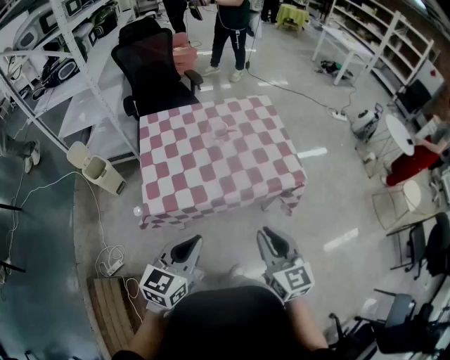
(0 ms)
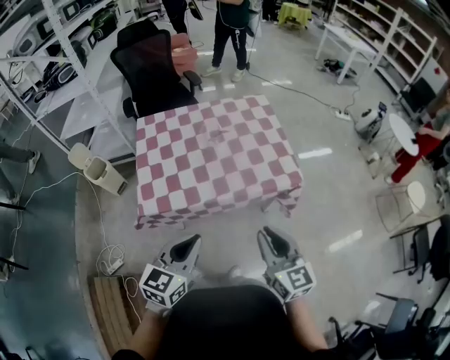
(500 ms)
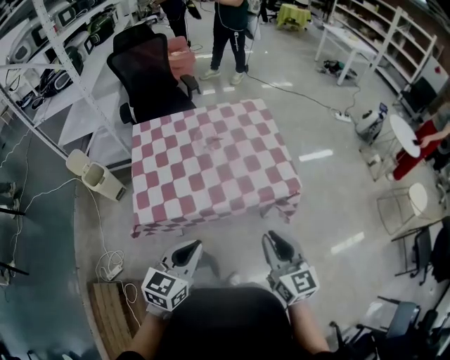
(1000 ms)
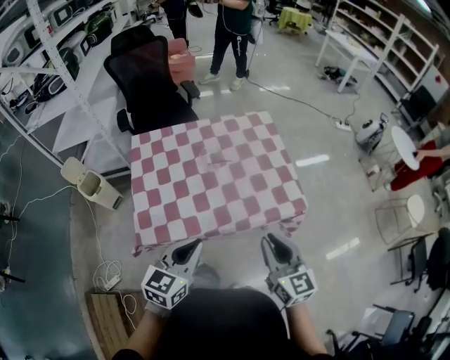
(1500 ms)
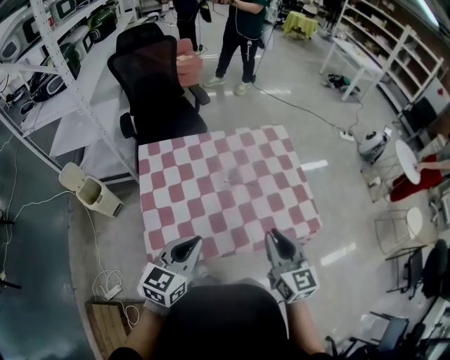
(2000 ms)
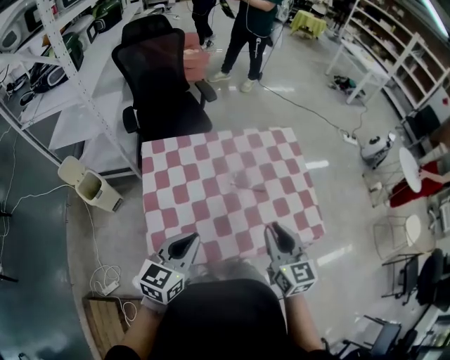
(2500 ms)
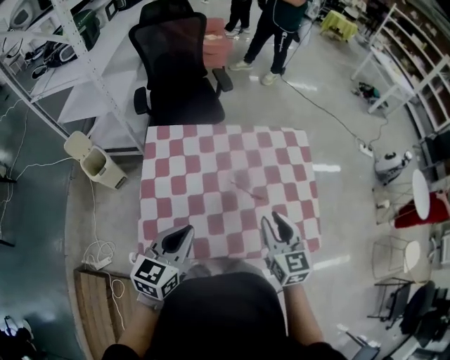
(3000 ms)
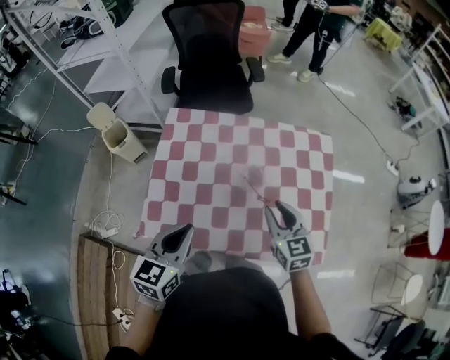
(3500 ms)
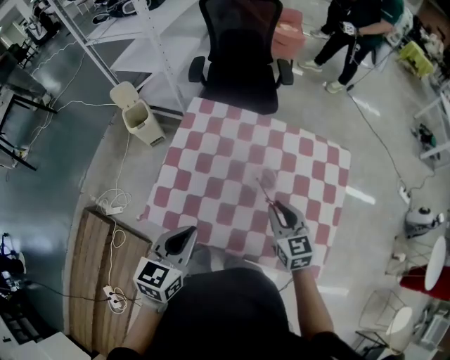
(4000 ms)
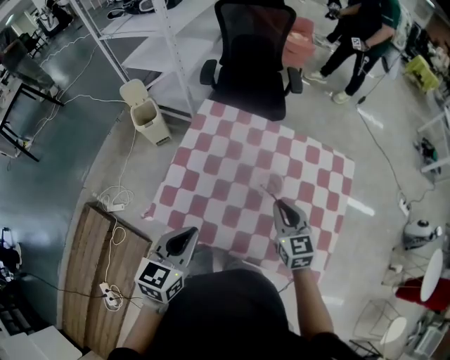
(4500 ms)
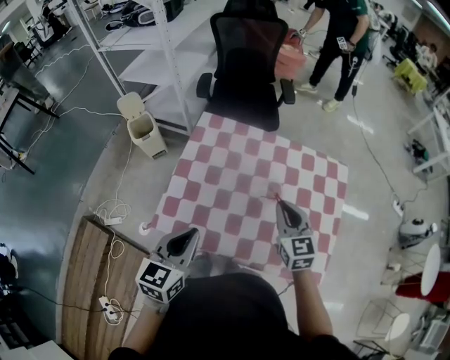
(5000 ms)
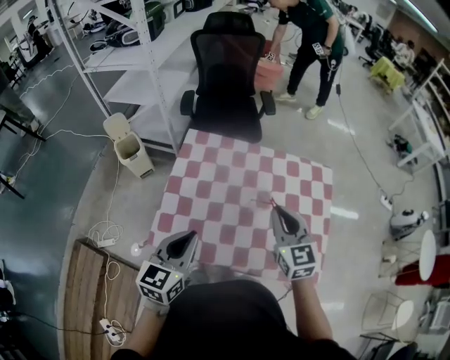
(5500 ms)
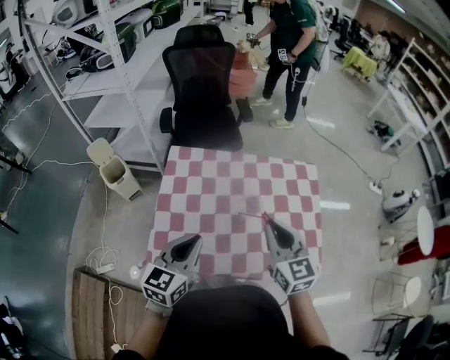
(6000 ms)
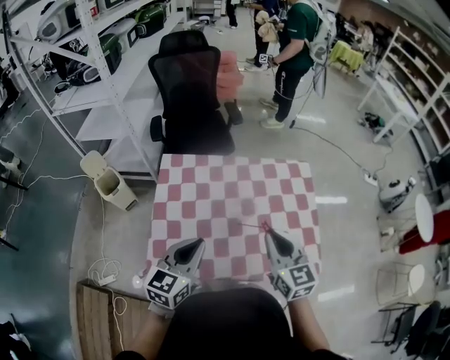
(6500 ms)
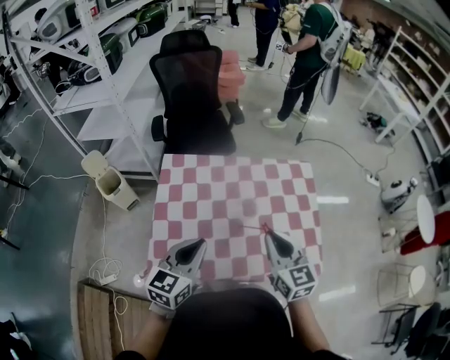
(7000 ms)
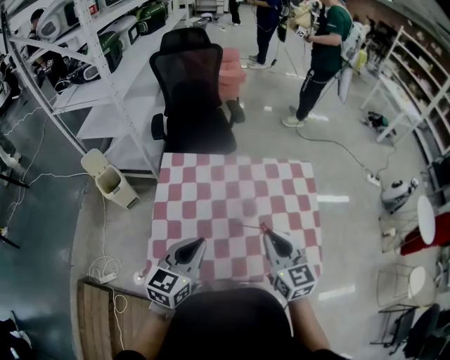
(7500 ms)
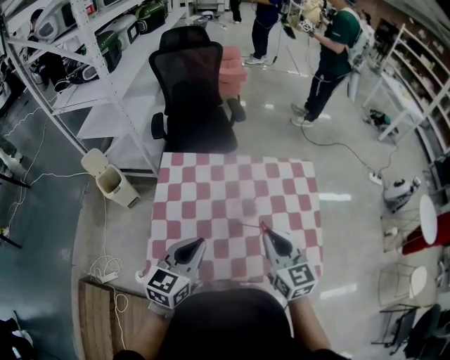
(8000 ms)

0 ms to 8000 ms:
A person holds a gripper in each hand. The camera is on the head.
0 ms to 2000 ms: The grippers both shift forward by approximately 25 cm.
2000 ms to 4000 ms: The right gripper changes place by about 20 cm, and swivels about 40 degrees; the left gripper turns by some 40 degrees.
4000 ms to 6000 ms: The left gripper travels upward by some 5 cm; the right gripper travels upward by about 15 cm.
6000 ms to 8000 ms: The grippers move only a little.

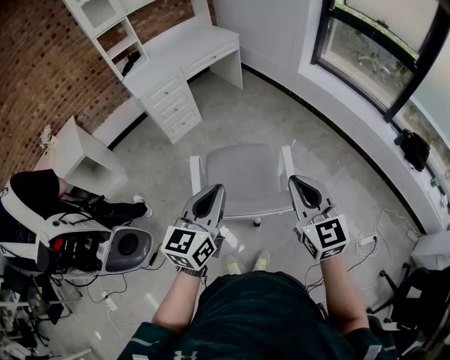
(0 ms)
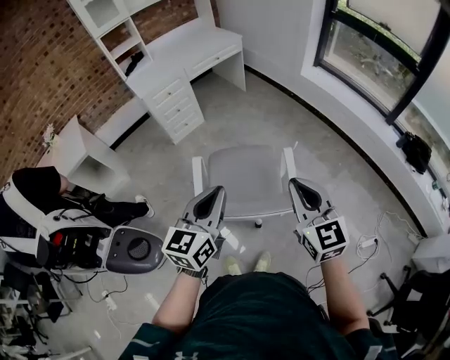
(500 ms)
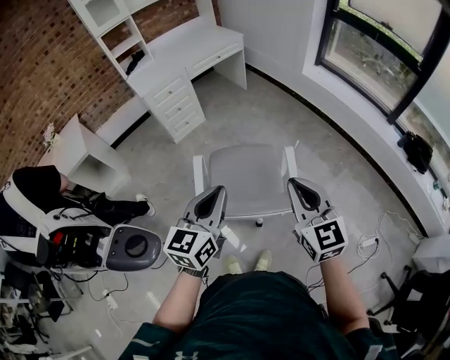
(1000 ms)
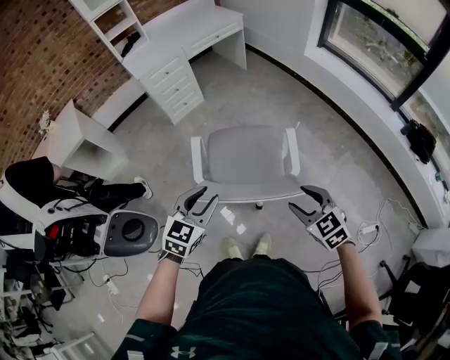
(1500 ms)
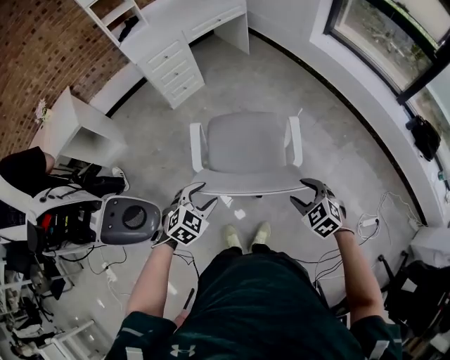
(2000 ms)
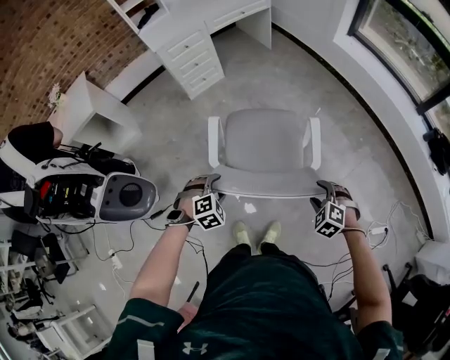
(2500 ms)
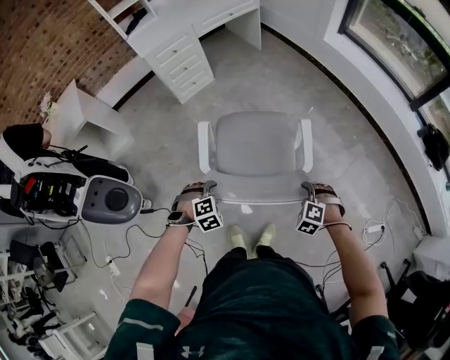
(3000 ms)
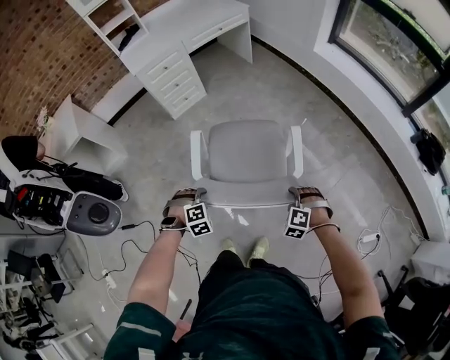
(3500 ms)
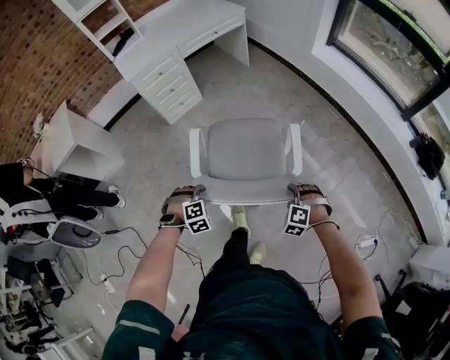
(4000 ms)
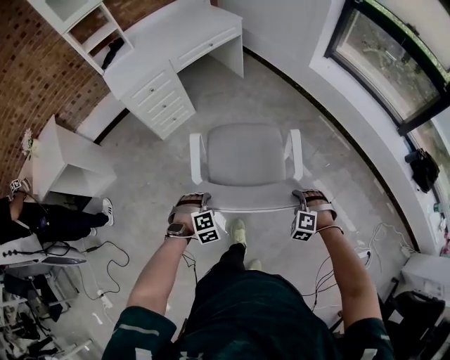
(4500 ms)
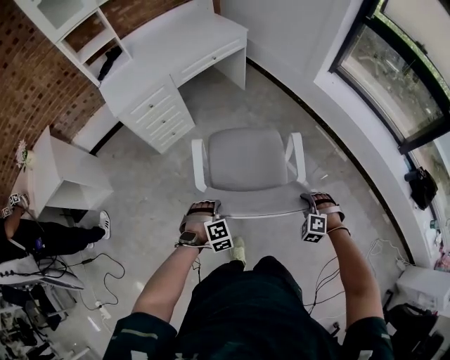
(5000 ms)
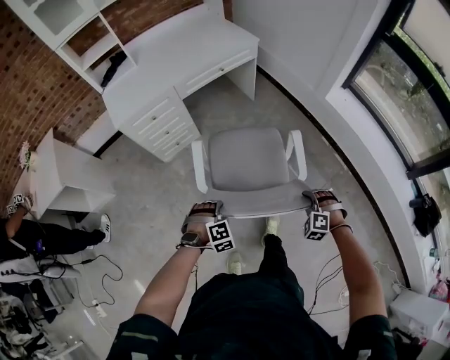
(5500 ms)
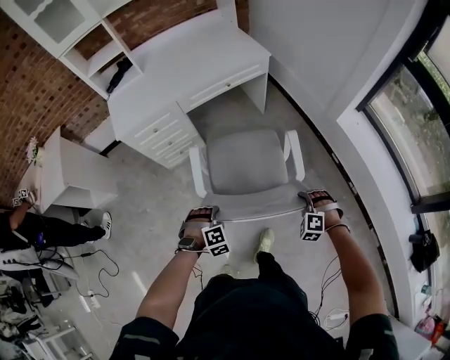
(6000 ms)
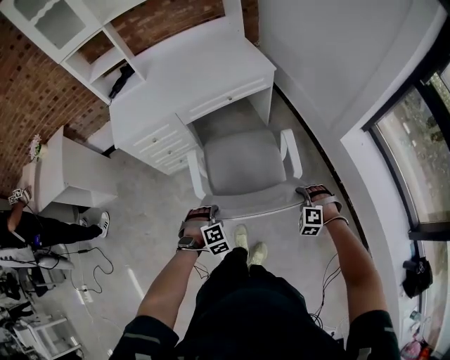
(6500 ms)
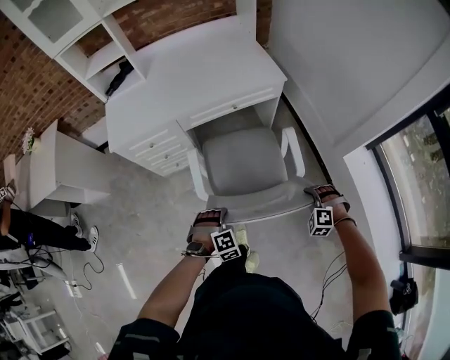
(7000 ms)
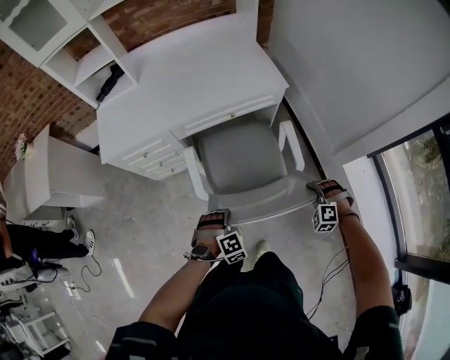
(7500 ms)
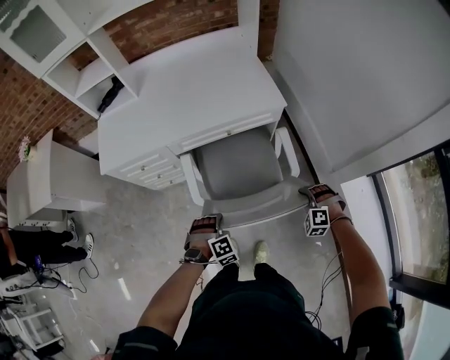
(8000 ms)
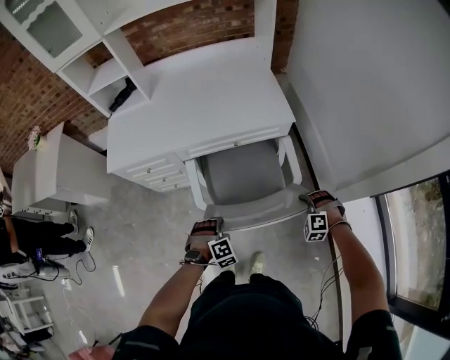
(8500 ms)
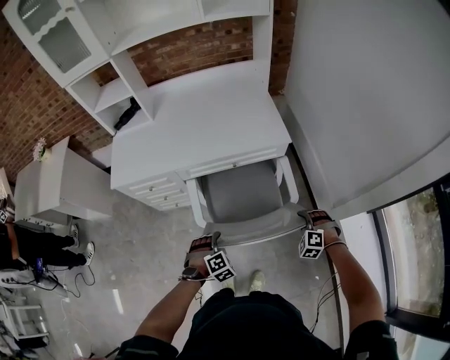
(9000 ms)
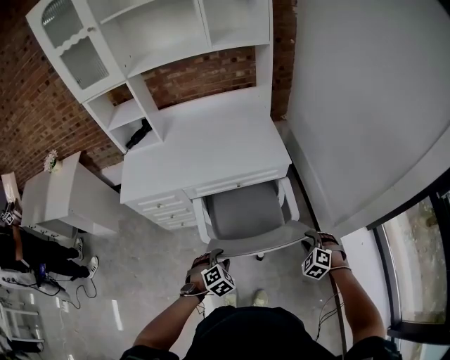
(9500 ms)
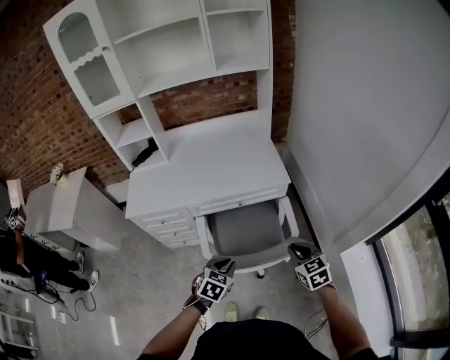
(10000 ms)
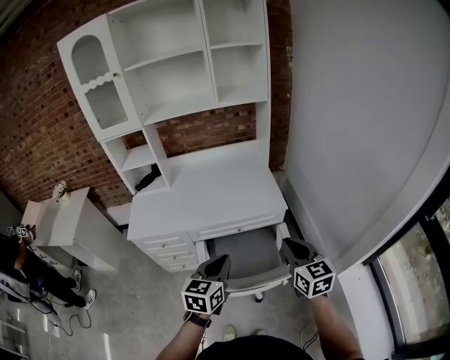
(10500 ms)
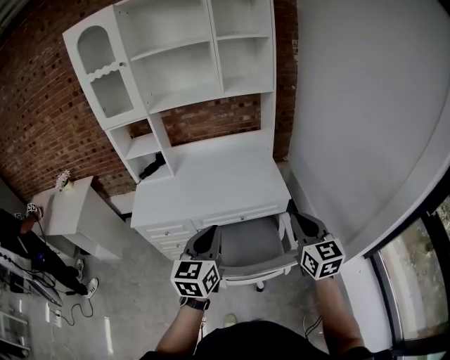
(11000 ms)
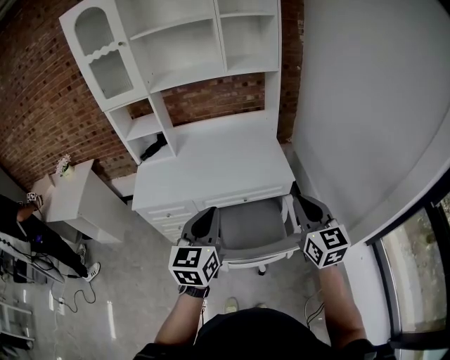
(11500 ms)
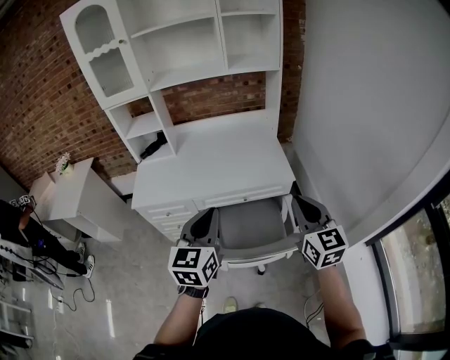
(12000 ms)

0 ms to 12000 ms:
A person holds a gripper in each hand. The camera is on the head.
0 ms to 2000 ms: The two grippers go some 25 cm downward. The right gripper points its fingers some 40 degrees further downward, and opens its fingers, while the left gripper angles its fingers downward, by approximately 40 degrees, and opens.
2000 ms to 4000 ms: Both grippers travel together forward and downward, some 20 cm. The left gripper changes its angle by approximately 40 degrees, and closes. Meanwhile the right gripper changes its angle by approximately 40 degrees, and closes its fingers.
4000 ms to 6000 ms: Both grippers are carried forward, approximately 50 cm.
6000 ms to 8000 ms: Both grippers move forward and to the right, approximately 35 cm.
8000 ms to 10000 ms: Both grippers travel together upward, about 20 cm. The left gripper rotates around the line of its fingers by roughly 50 degrees, counterclockwise from behind, and opens and closes again, while the right gripper rotates around the line of its fingers by roughly 60 degrees, clockwise from behind.
10000 ms to 12000 ms: Both grippers travel together upward, approximately 25 cm. The right gripper turns by roughly 30 degrees; the left gripper points its fingers some 40 degrees further upward.

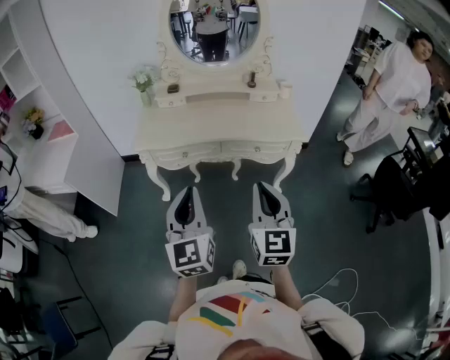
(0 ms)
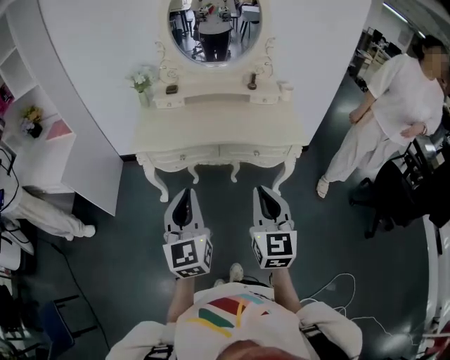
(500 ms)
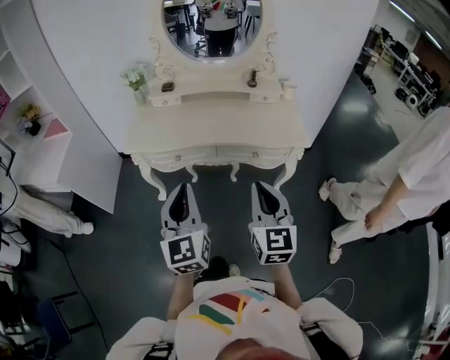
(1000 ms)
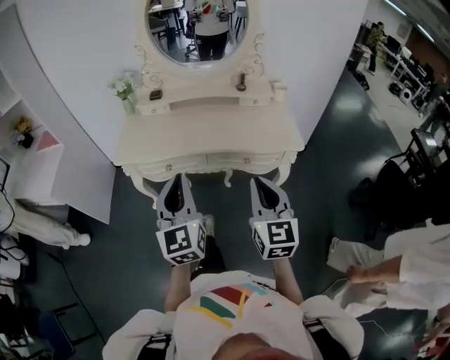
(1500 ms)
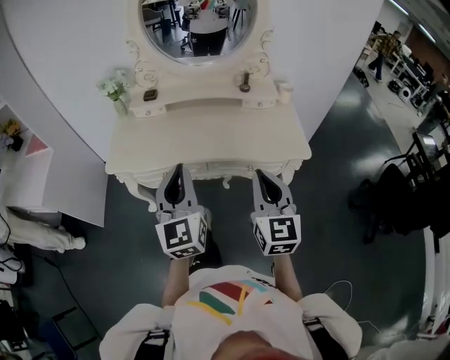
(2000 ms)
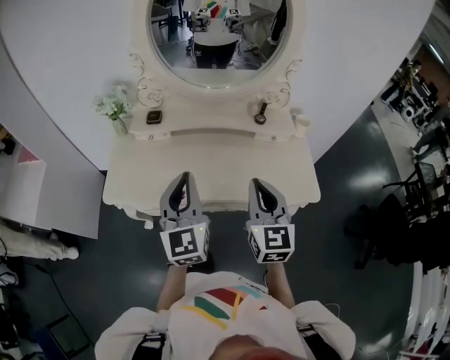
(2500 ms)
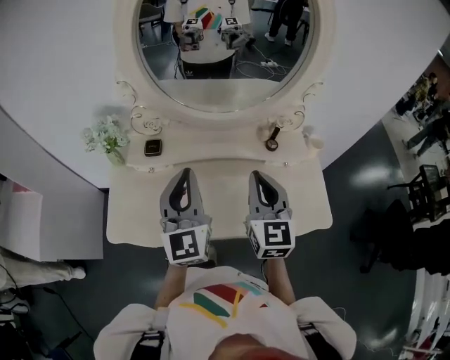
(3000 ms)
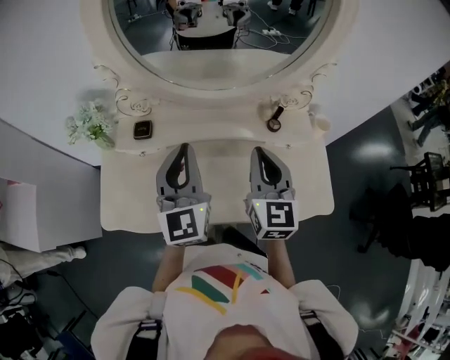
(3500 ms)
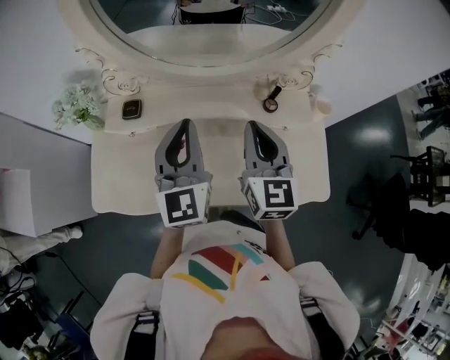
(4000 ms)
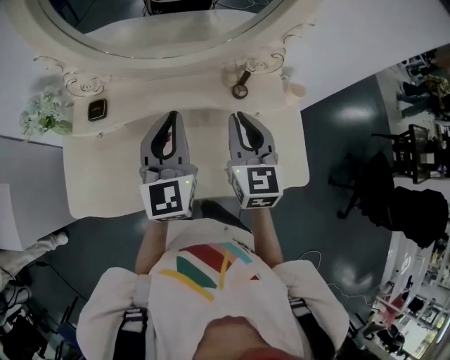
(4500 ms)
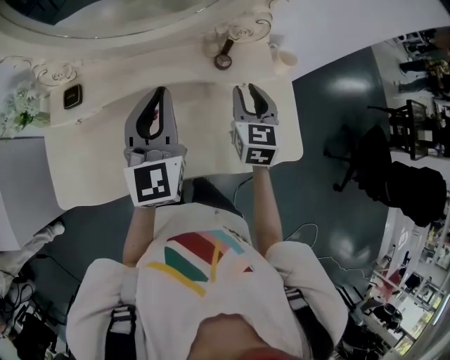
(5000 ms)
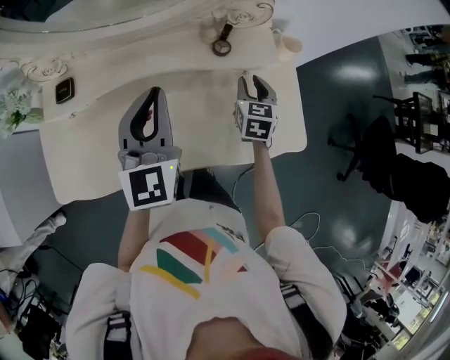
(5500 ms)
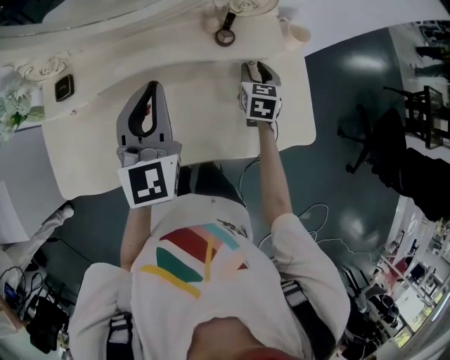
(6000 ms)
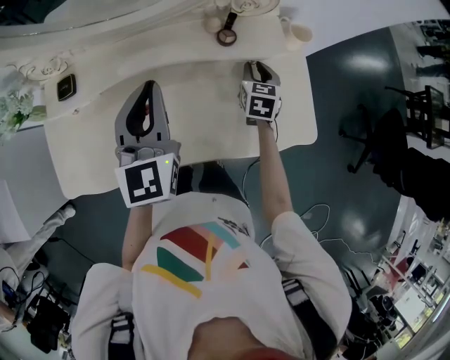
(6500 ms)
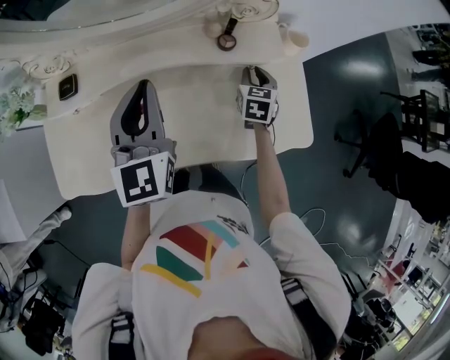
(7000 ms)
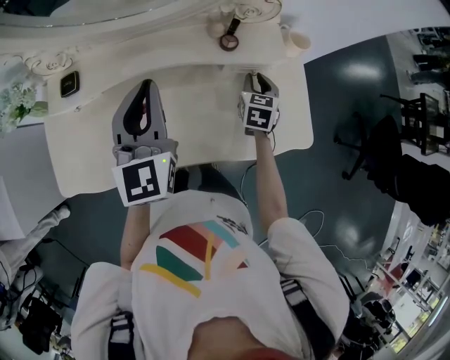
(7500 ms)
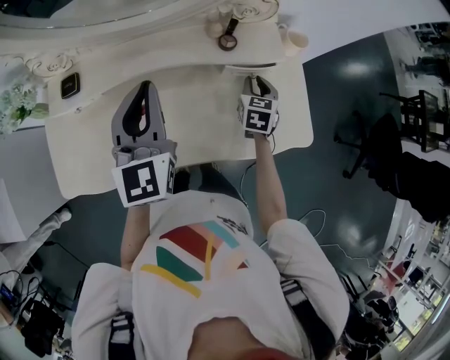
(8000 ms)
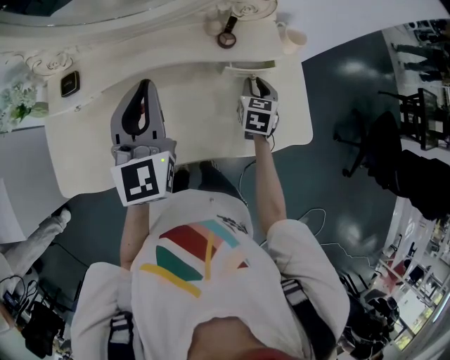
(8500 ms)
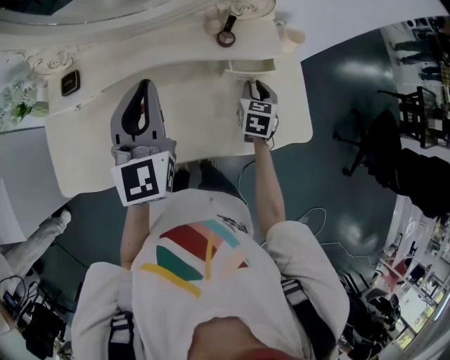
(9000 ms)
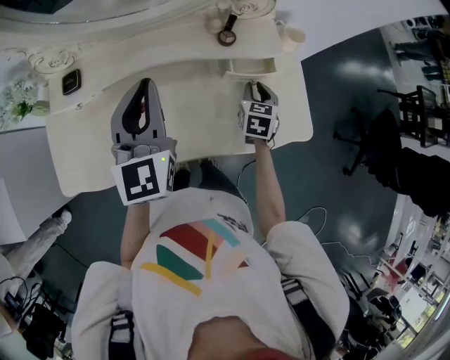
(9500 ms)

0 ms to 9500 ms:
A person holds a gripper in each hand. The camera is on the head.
0 ms to 2000 ms: The two grippers go roughly 20 cm forward.
2000 ms to 4000 ms: The two grippers travel together, forward, about 40 cm.
4000 ms to 5500 ms: The left gripper heads to the right and downward, covering about 10 cm. The right gripper shifts approximately 30 cm downward and to the right, changes its angle by some 30 degrees, and opens up.
5500 ms to 9500 ms: There are only small adjustments of the grippers.
